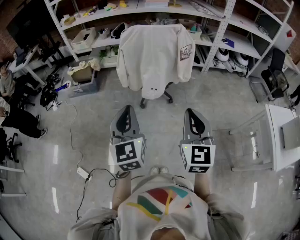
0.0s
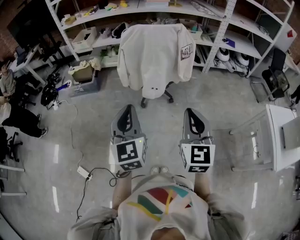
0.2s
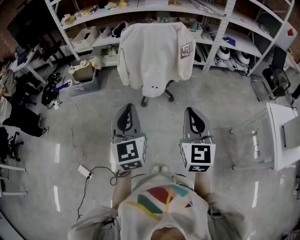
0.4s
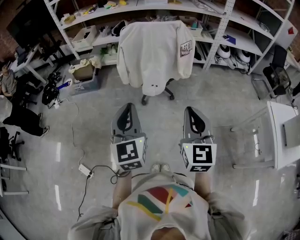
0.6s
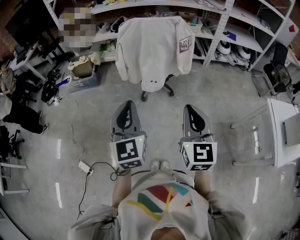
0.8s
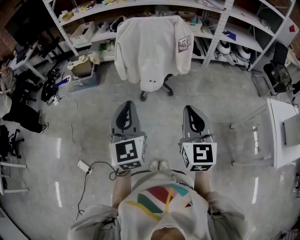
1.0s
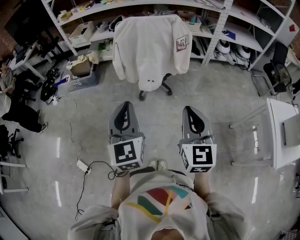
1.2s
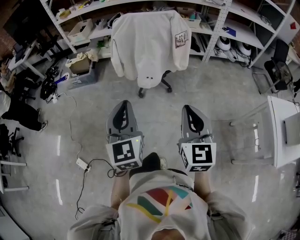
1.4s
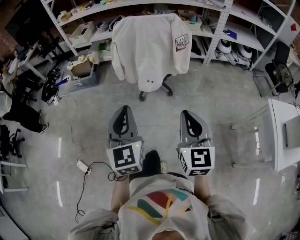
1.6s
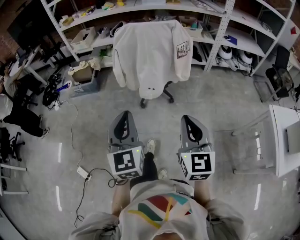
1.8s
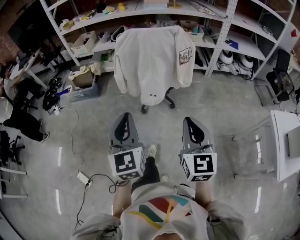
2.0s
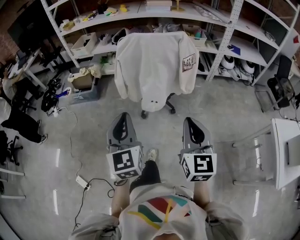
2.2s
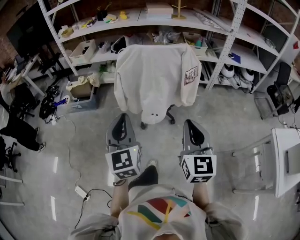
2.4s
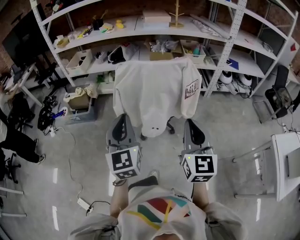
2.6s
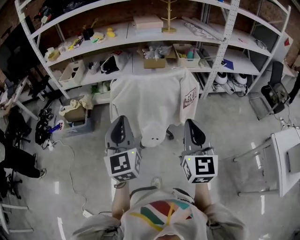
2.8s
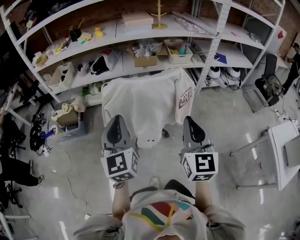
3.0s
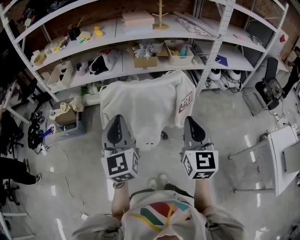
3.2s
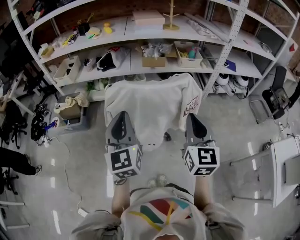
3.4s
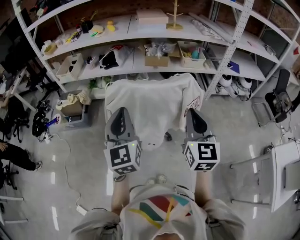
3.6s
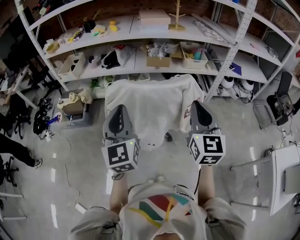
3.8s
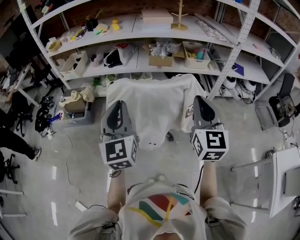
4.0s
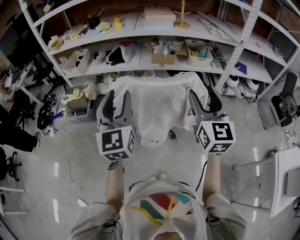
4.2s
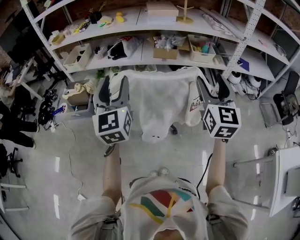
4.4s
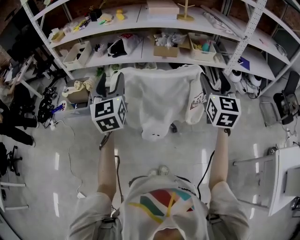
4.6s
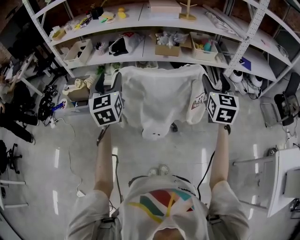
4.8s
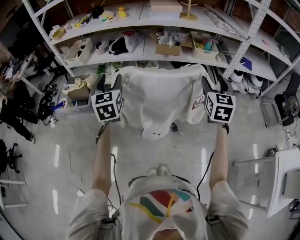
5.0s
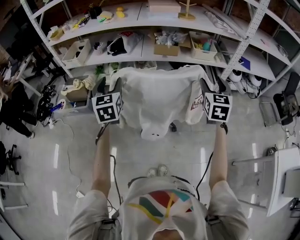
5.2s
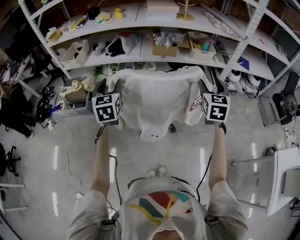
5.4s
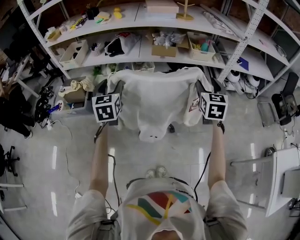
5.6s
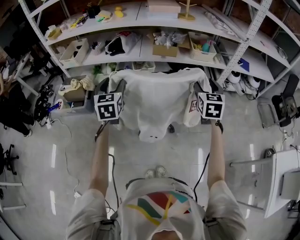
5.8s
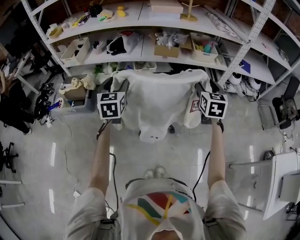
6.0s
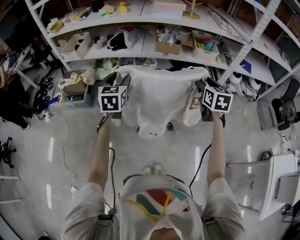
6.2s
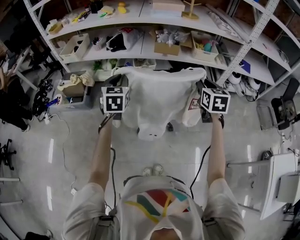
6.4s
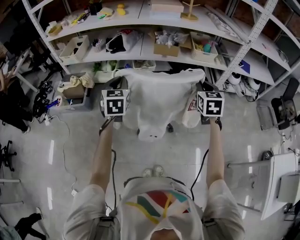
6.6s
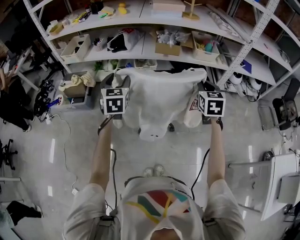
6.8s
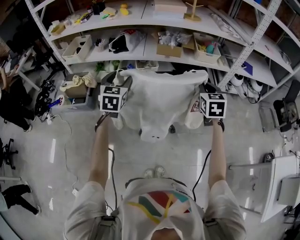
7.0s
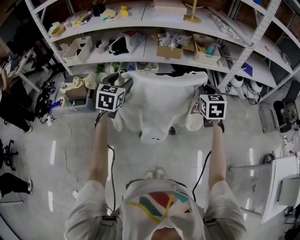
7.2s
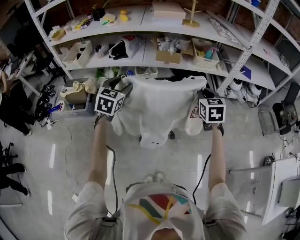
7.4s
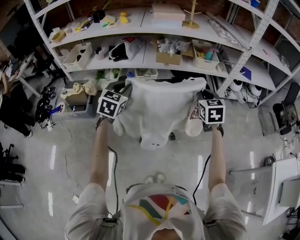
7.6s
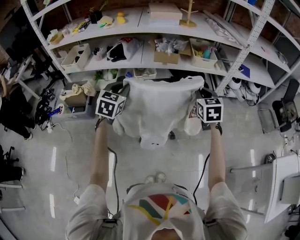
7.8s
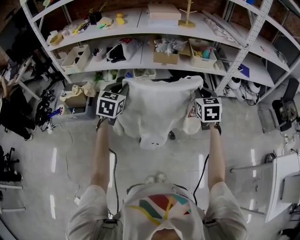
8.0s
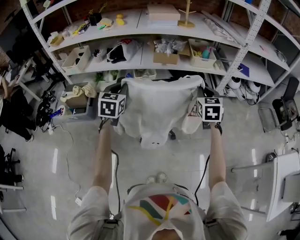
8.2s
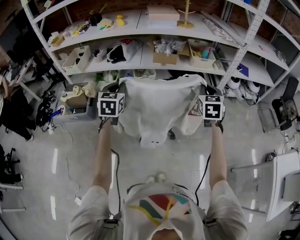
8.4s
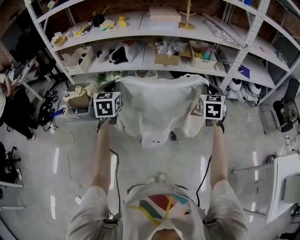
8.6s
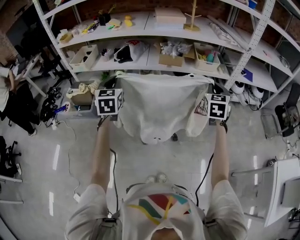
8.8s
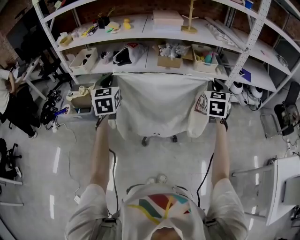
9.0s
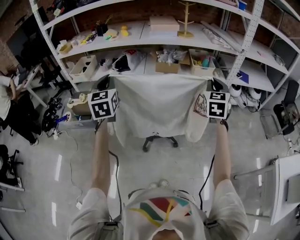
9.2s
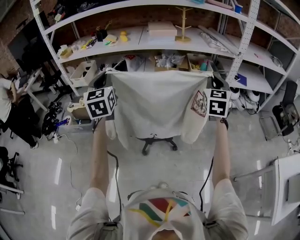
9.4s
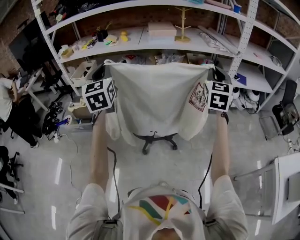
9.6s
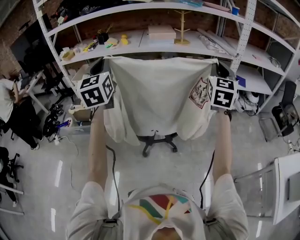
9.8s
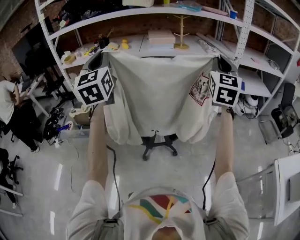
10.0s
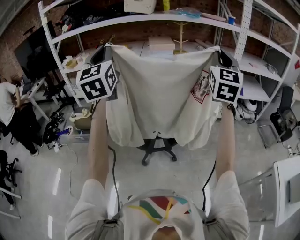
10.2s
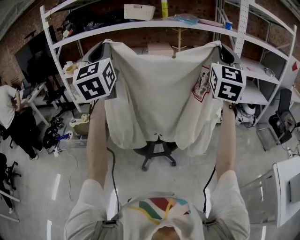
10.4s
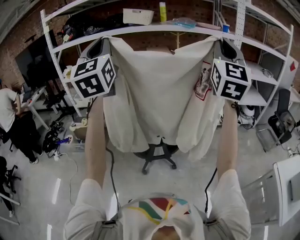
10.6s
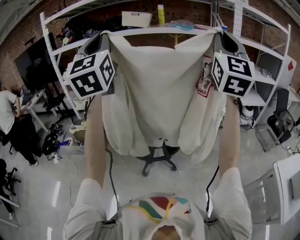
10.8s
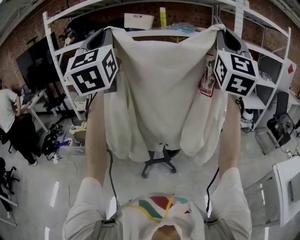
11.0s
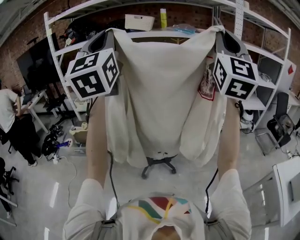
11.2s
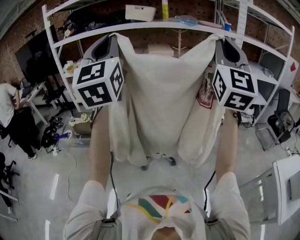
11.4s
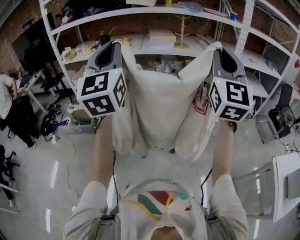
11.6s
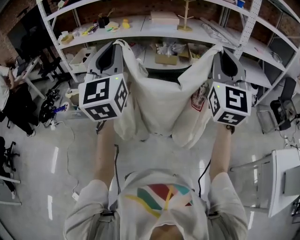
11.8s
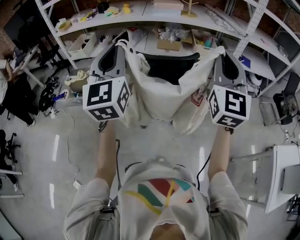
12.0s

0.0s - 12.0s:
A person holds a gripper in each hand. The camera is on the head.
0.0s - 1.6s: The left gripper shifts by some 5 cm.
1.6s - 3.0s: The grippers both shift forward by roughly 35 cm.
3.0s - 4.4s: The left gripper is displaced forward and upward by about 10 cm, and opens up. The right gripper shifts about 15 cm forward and to the right, and opens its fingers.
4.4s - 6.0s: Both grippers move downward and forward, some 20 cm. The right gripper turns by approximately 20 degrees; the left gripper swivels approximately 30 degrees.
6.0s - 7.6s: The left gripper rotates some 20 degrees, and closes; the right gripper closes.
7.6s - 9.0s: The right gripper moves upward and to the right, about 10 cm. Meanwhile the left gripper is displaced upward, to the left and backward by roughly 10 cm, and swivels about 30 degrees.
9.0s - 10.4s: Both grippers travel together upward, roughly 30 cm. The left gripper points its fingers roughly 30 degrees further upward. Meanwhile the right gripper tilts its fingers approximately 40 degrees upward.
10.4s - 12.0s: The right gripper travels downward and to the left by roughly 15 cm; the left gripper shifts roughly 15 cm downward.

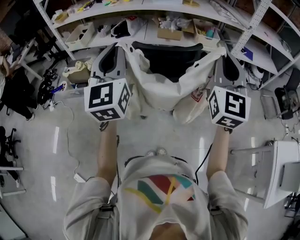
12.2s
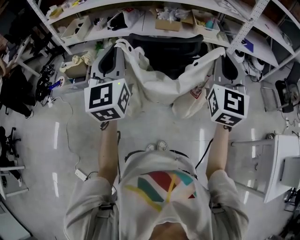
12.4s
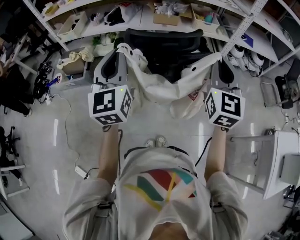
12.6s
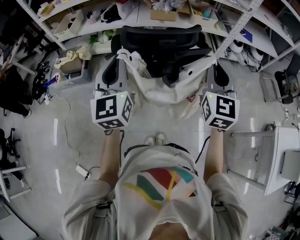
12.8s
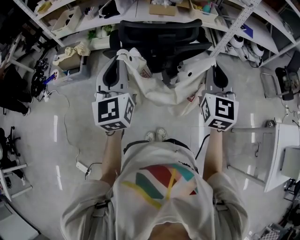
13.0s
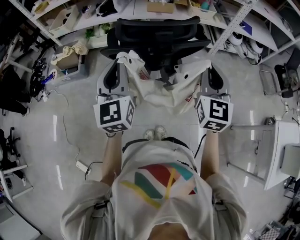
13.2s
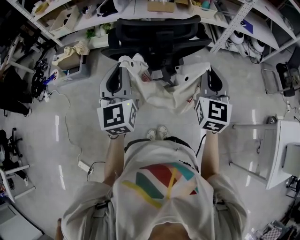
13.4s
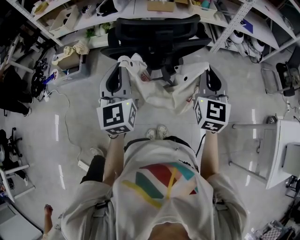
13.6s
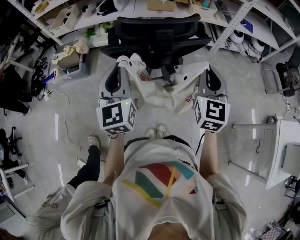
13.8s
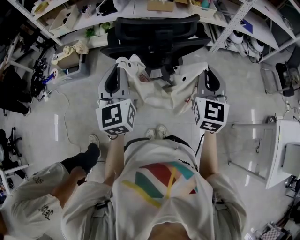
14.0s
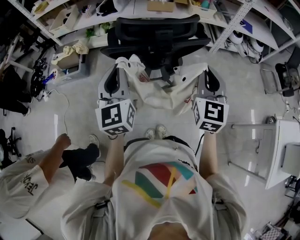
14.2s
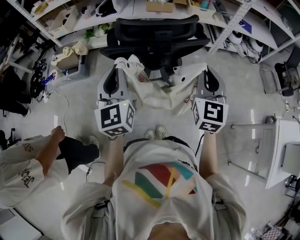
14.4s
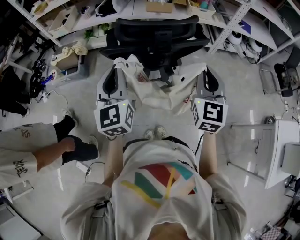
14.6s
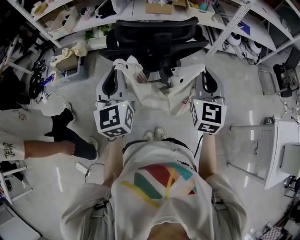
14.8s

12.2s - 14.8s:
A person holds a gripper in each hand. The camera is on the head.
12.2s - 13.4s: Both grippers travel together downward, about 15 cm.
13.4s - 14.8s: Both grippers stay put.

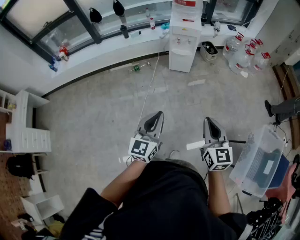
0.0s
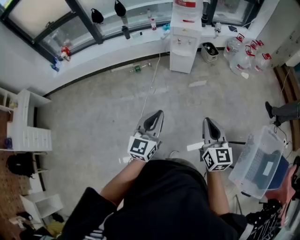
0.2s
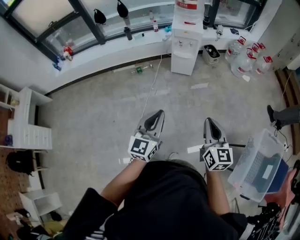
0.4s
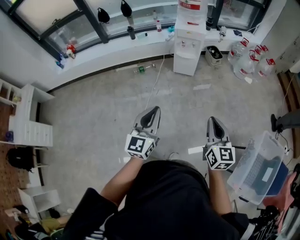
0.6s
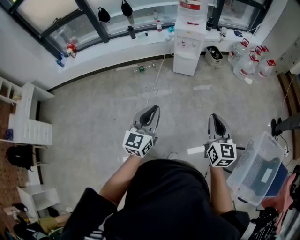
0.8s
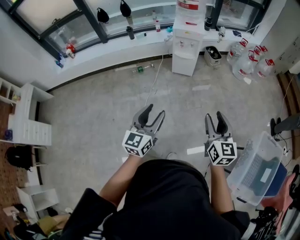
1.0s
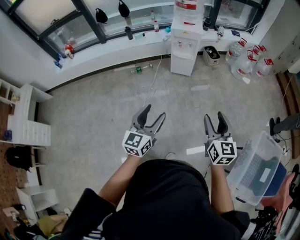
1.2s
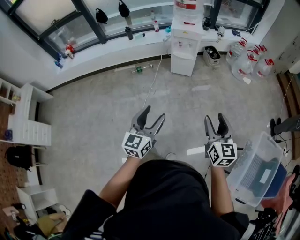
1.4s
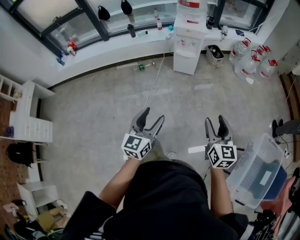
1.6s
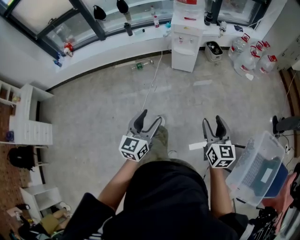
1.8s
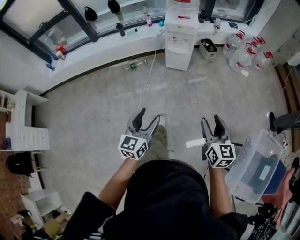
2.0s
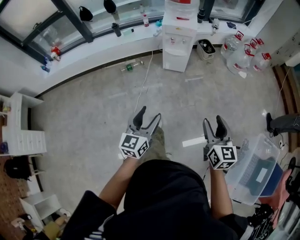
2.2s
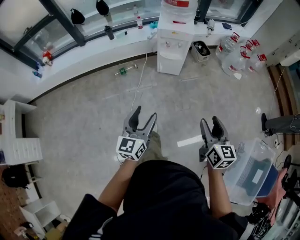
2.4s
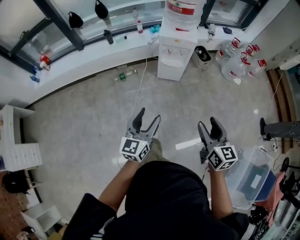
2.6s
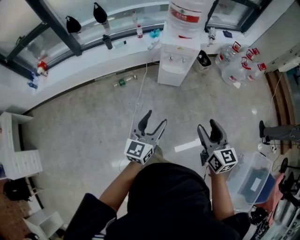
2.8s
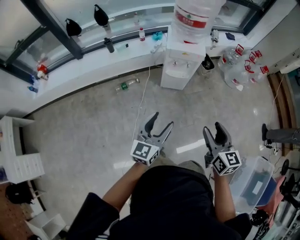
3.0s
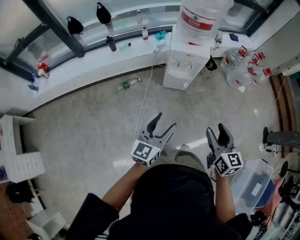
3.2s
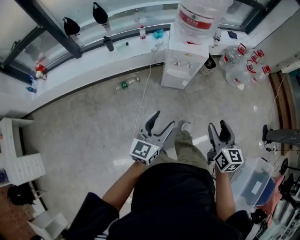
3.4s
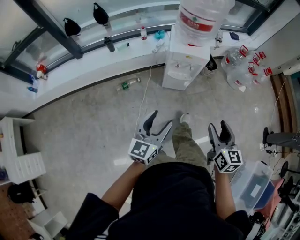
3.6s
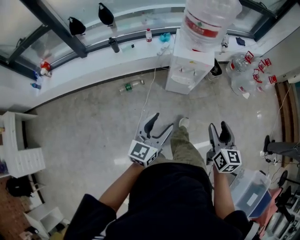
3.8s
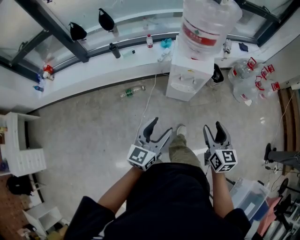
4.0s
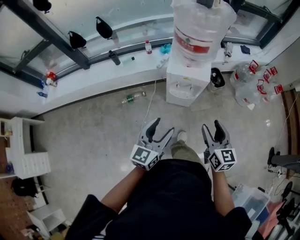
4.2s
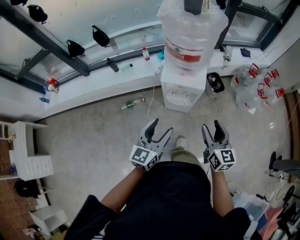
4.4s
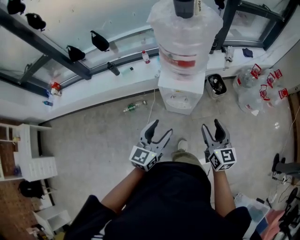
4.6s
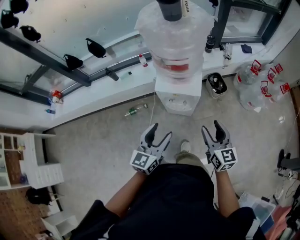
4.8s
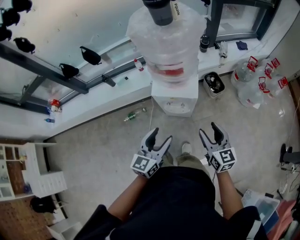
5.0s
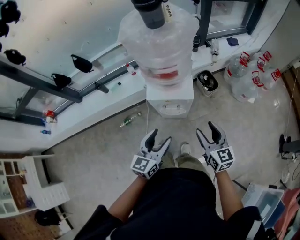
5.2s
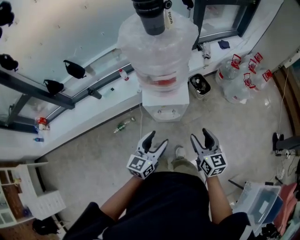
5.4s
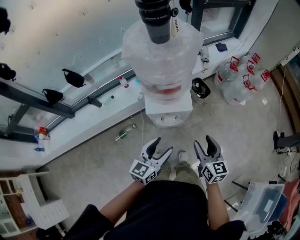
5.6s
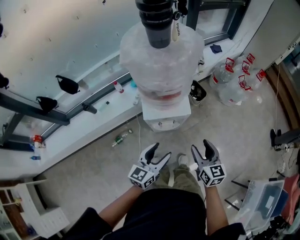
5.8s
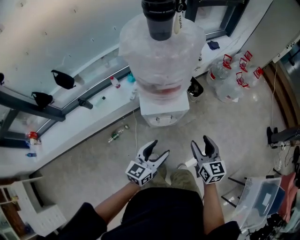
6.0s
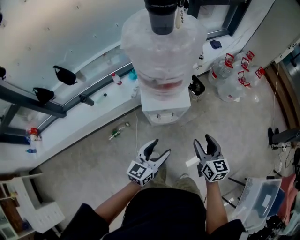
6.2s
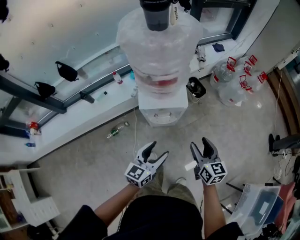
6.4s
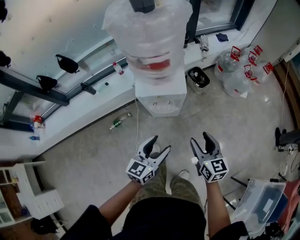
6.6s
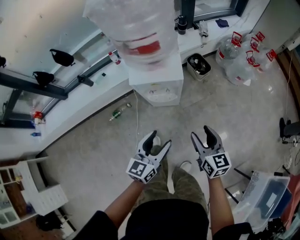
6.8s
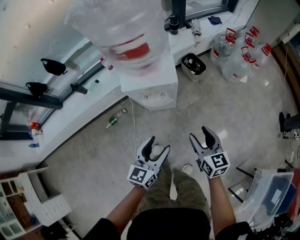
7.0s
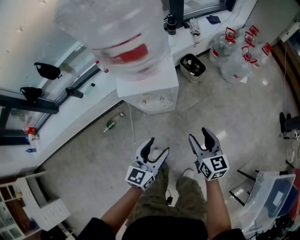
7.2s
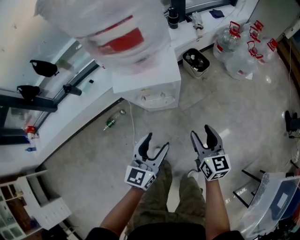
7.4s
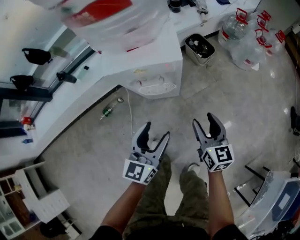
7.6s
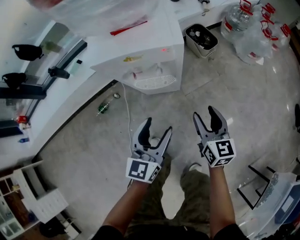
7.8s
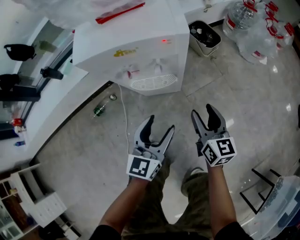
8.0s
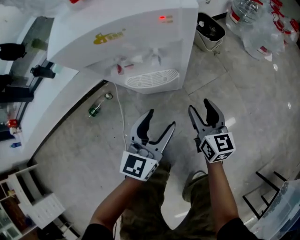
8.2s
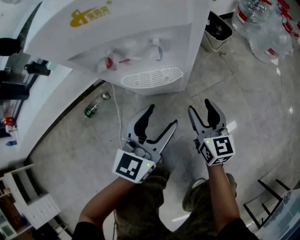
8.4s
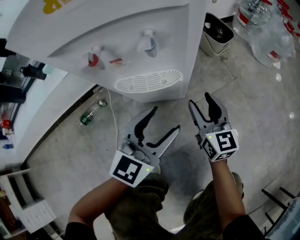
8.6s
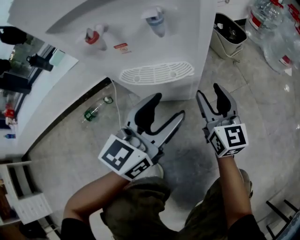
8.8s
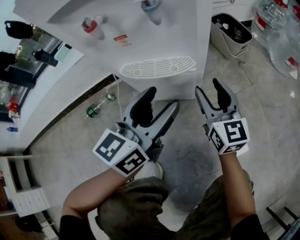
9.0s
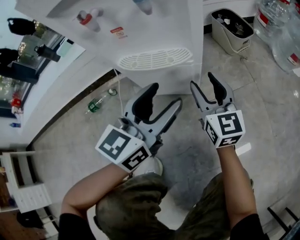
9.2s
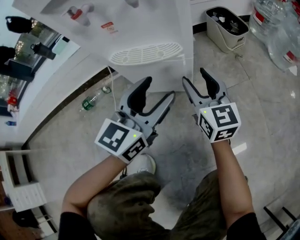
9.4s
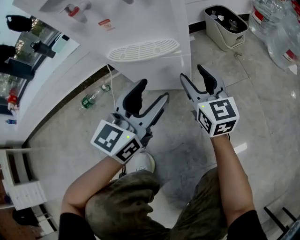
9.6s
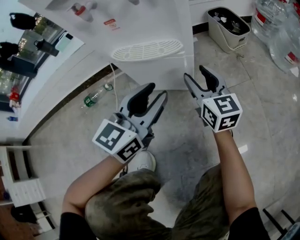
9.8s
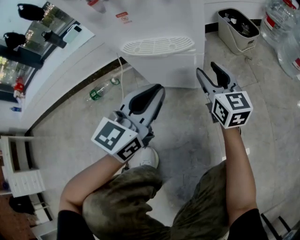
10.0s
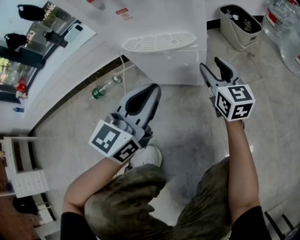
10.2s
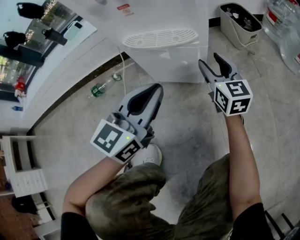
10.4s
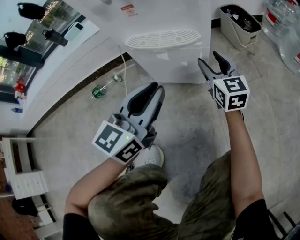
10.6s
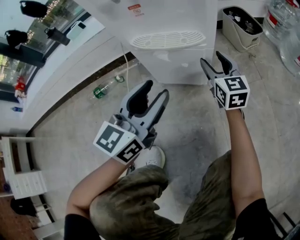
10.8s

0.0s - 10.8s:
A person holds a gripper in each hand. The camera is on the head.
0.0s - 1.6s: The left gripper opens up, while the right gripper moves to the right, roughly 10 cm, and opens.
1.6s - 3.0s: The two grippers go some 30 cm forward.
3.0s - 4.6s: The grippers both shift forward by some 30 cm.
4.6s - 6.2s: The grippers both shift downward by some 5 cm. The left gripper rotates approximately 30 degrees.
6.2s - 7.8s: The two grippers go approximately 30 cm downward.
7.8s - 9.2s: The left gripper is displaced downward by approximately 25 cm. The right gripper goes roughly 30 cm downward and forward, and swivels some 20 degrees.
9.2s - 10.8s: The left gripper moves to the left and backward, approximately 10 cm, and closes and opens again, while the right gripper goes some 5 cm downward.
